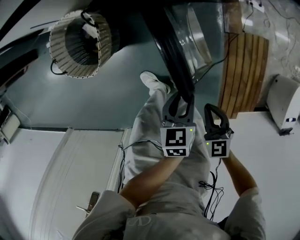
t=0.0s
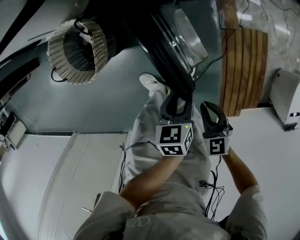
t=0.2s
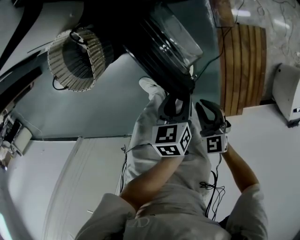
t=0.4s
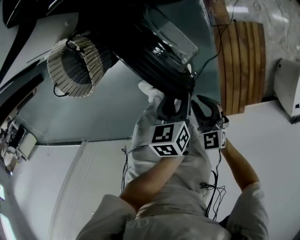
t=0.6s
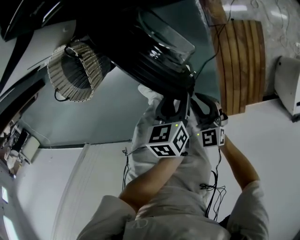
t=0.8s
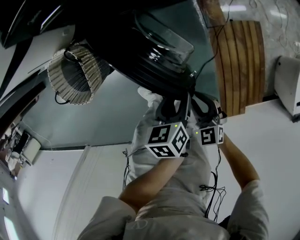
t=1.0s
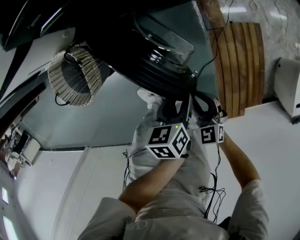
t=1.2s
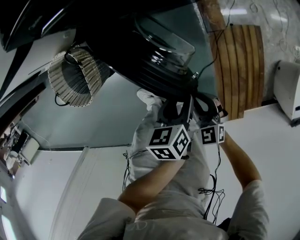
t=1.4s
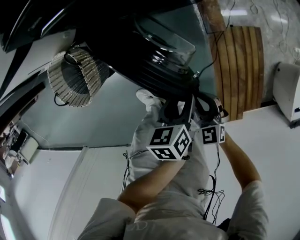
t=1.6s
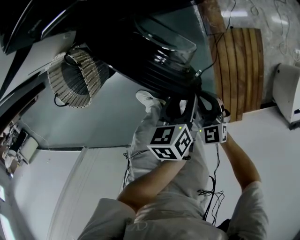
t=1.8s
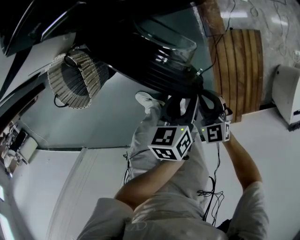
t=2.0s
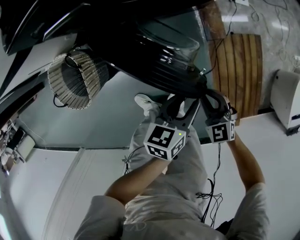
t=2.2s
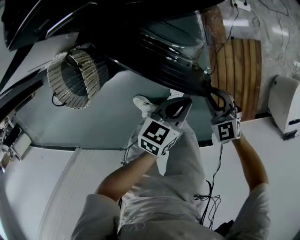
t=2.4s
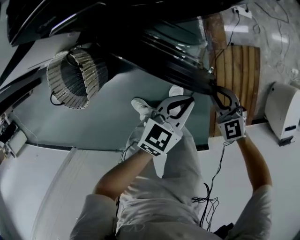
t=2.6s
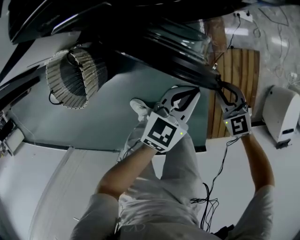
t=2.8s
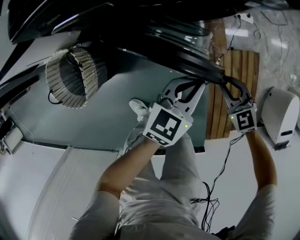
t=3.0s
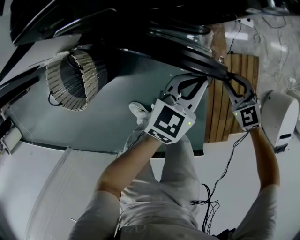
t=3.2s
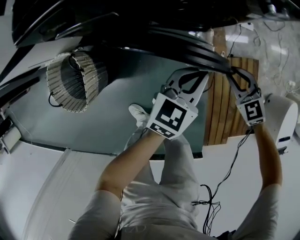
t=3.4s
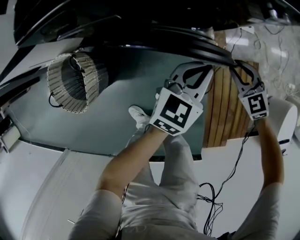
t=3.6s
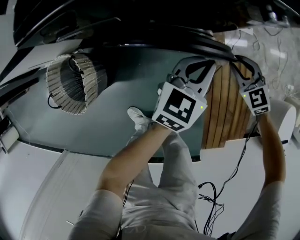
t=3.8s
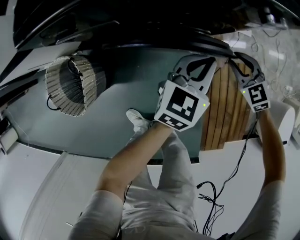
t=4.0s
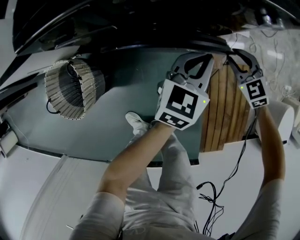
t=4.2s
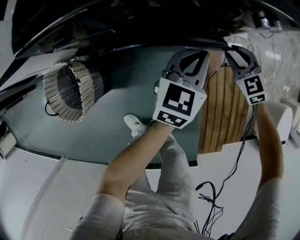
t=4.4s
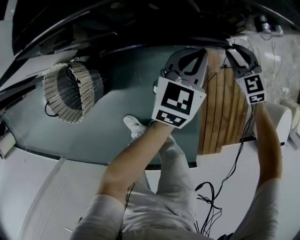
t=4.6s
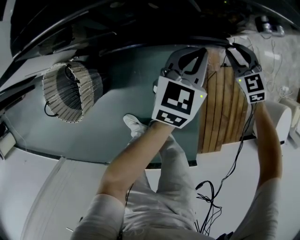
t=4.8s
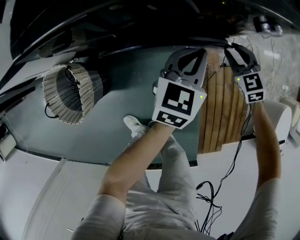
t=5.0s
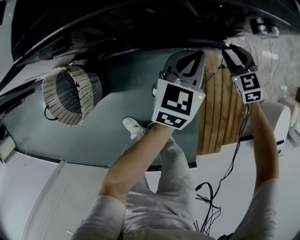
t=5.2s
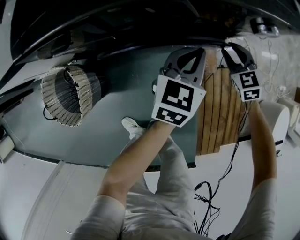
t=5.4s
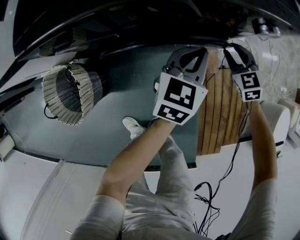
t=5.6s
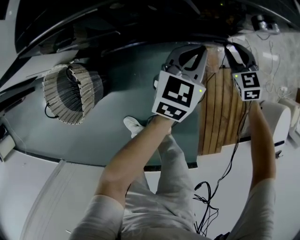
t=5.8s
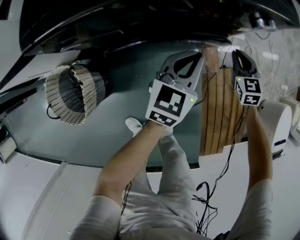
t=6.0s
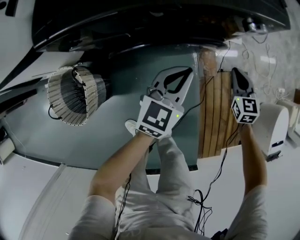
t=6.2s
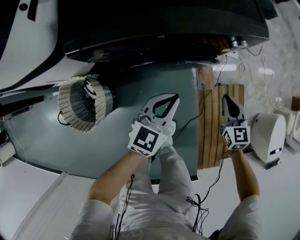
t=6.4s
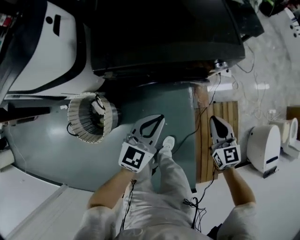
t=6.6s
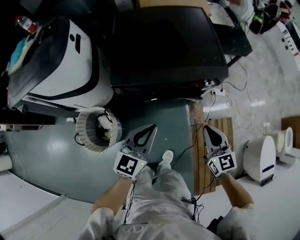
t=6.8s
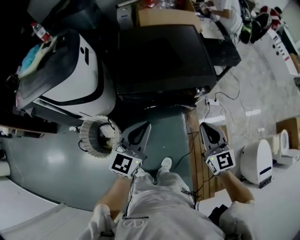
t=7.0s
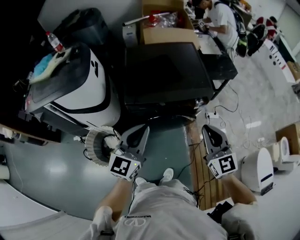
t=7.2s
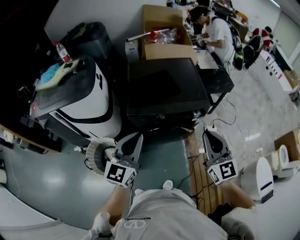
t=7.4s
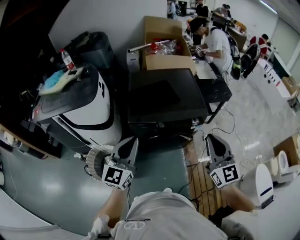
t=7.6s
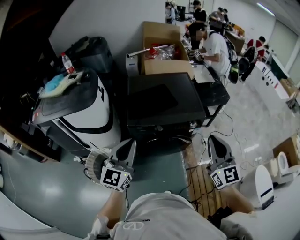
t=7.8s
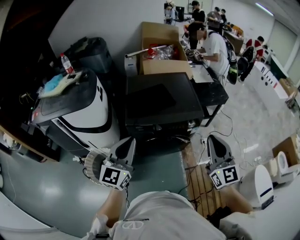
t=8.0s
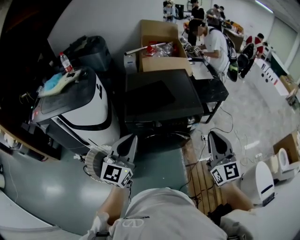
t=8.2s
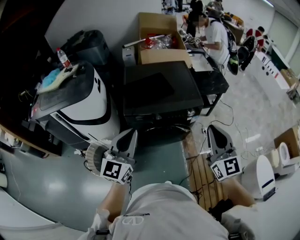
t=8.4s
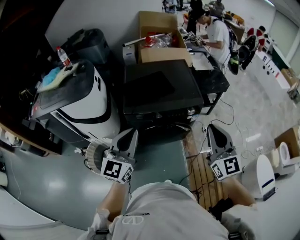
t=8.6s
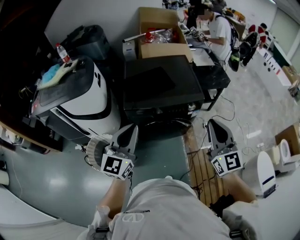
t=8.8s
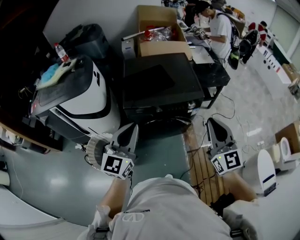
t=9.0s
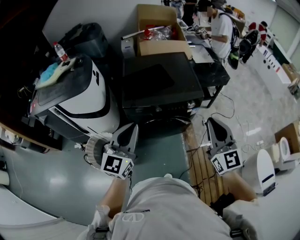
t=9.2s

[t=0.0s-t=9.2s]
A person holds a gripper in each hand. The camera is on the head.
t=0.0s to t=1.6s: The left gripper heads to the right and forward, covering some 15 cm. Meanwhile the right gripper shifts about 10 cm forward, to the right and downward.
t=1.6s to t=3.0s: The right gripper is displaced forward and to the right by some 20 cm; the left gripper shifts about 15 cm forward, twists about 40 degrees clockwise, seen from behind, and closes its fingers.
t=3.0s to t=4.6s: Both grippers travel together forward, approximately 20 cm.
t=4.6s to t=6.2s: The grippers both shift backward by some 5 cm. The right gripper swivels about 30 degrees, and closes up.
t=6.2s to t=7.6s: The right gripper moves upward, roughly 60 cm, and tilts its fingers roughly 40 degrees upward. The left gripper goes approximately 50 cm upward and to the left, and changes its angle by approximately 30 degrees.
t=7.6s to t=9.2s: The grippers move only a little.

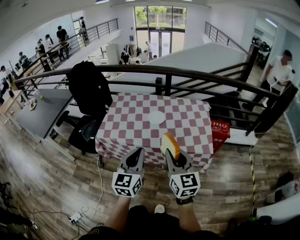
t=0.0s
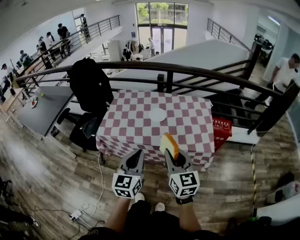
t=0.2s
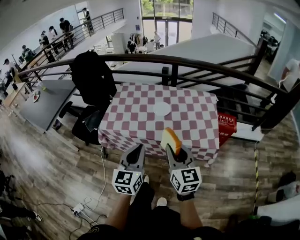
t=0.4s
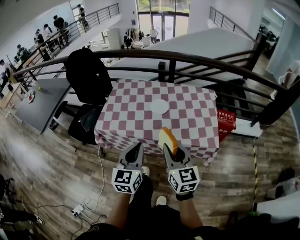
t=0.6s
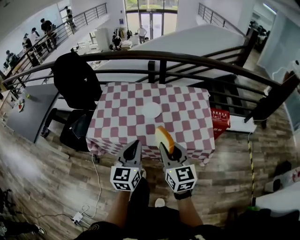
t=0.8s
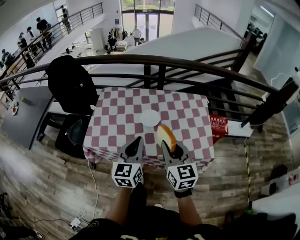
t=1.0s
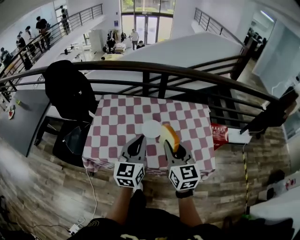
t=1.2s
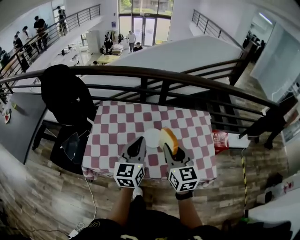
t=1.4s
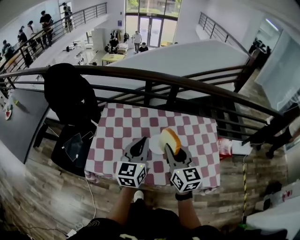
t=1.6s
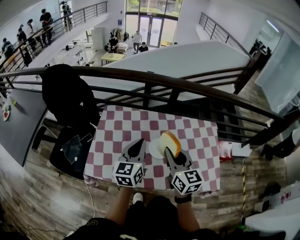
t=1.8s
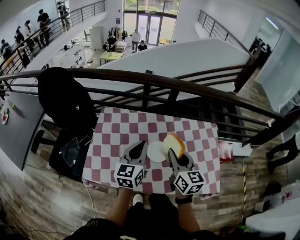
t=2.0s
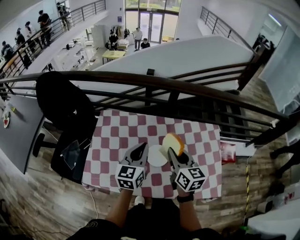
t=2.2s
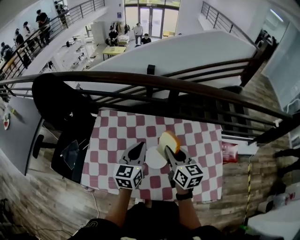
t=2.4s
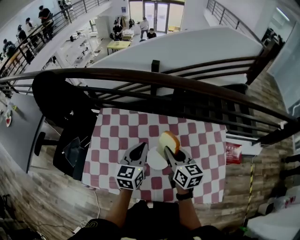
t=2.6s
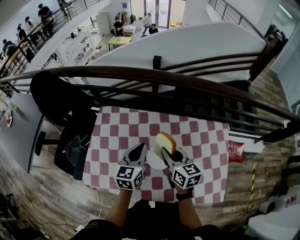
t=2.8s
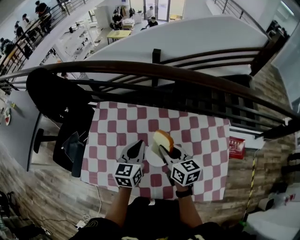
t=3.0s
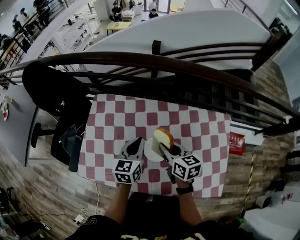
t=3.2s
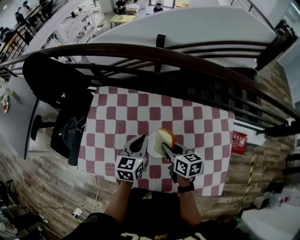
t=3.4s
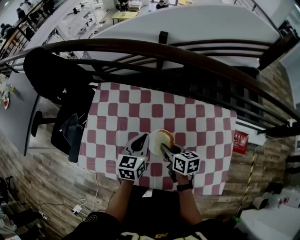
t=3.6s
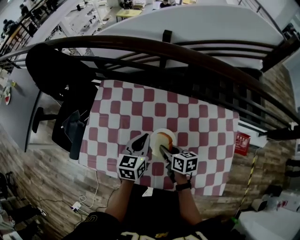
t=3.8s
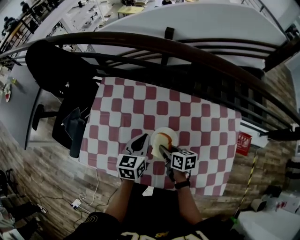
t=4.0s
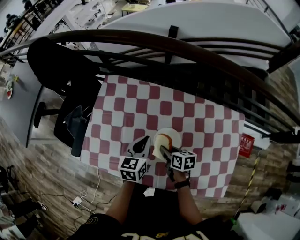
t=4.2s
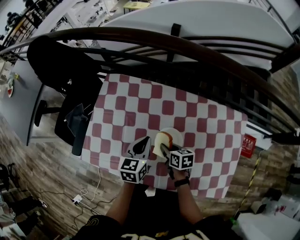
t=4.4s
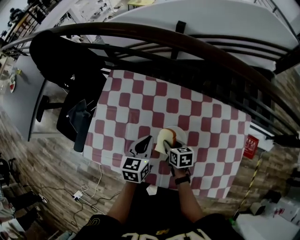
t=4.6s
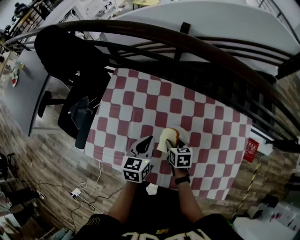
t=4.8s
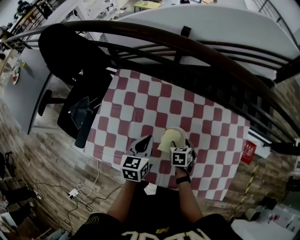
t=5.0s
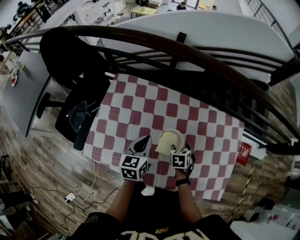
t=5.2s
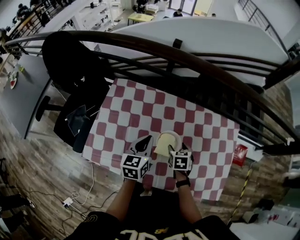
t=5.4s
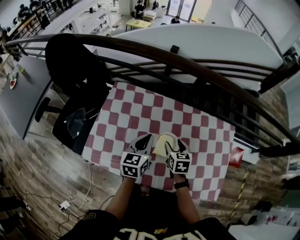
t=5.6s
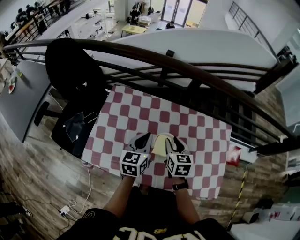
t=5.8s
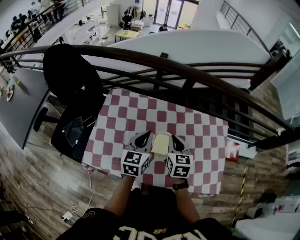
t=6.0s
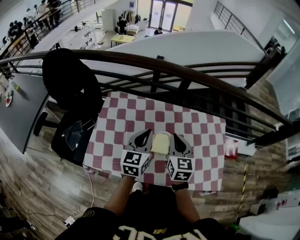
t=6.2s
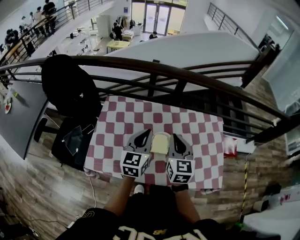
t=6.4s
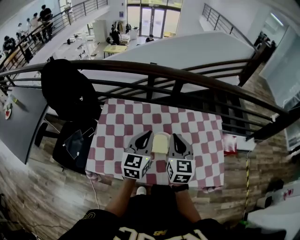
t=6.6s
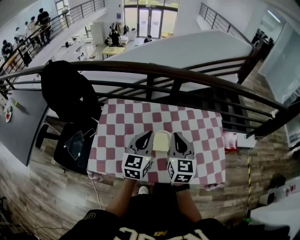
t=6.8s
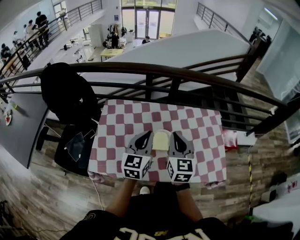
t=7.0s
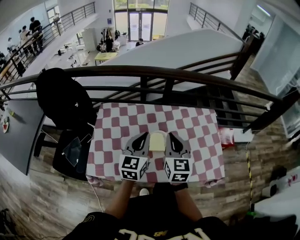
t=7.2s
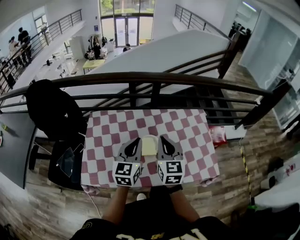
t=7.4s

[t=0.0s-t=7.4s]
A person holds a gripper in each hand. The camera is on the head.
t=0.0s to t=1.4s: The two grippers go about 30 cm forward.
t=1.4s to t=3.0s: The grippers both shift forward and downward by about 25 cm. The right gripper changes its angle by some 30 degrees.
t=3.0s to t=4.4s: The right gripper goes some 20 cm downward, and turns by about 30 degrees. Meanwhile the left gripper goes some 10 cm downward.
t=4.4s to t=6.0s: The left gripper shifts some 10 cm upward; the right gripper travels upward by about 20 cm, changes its angle by approximately 40 degrees, and opens, then closes again.
t=6.0s to t=7.4s: The left gripper goes roughly 10 cm backward and upward, while the right gripper heads upward and backward, covering roughly 10 cm.

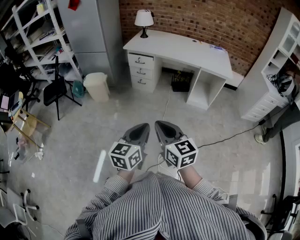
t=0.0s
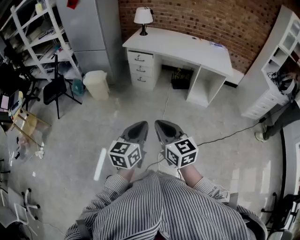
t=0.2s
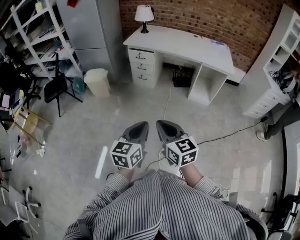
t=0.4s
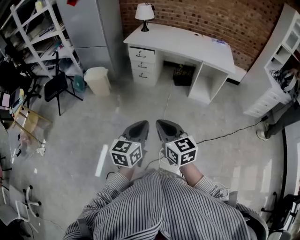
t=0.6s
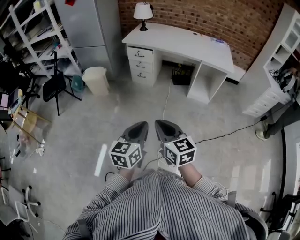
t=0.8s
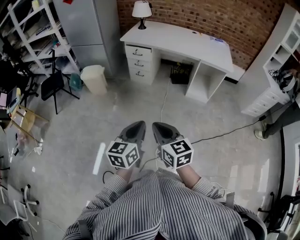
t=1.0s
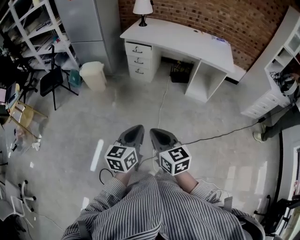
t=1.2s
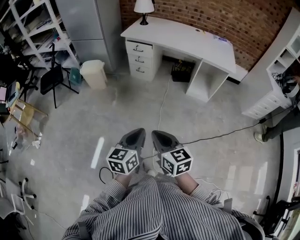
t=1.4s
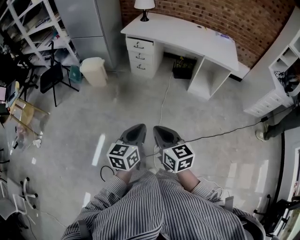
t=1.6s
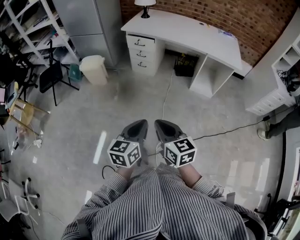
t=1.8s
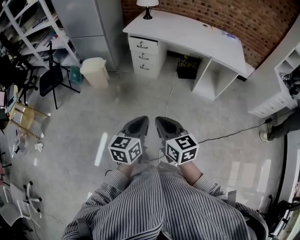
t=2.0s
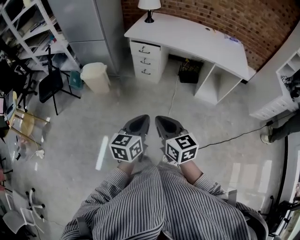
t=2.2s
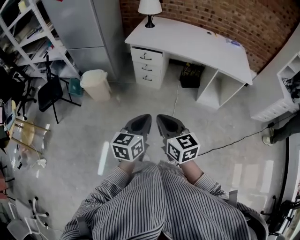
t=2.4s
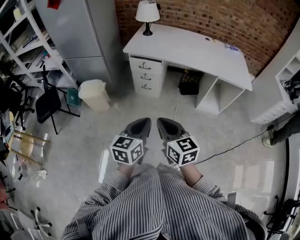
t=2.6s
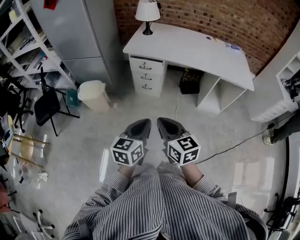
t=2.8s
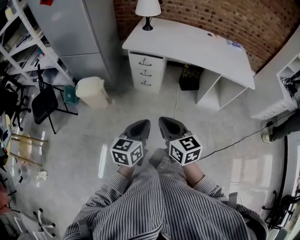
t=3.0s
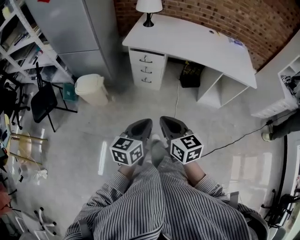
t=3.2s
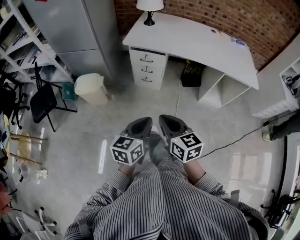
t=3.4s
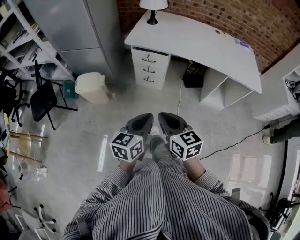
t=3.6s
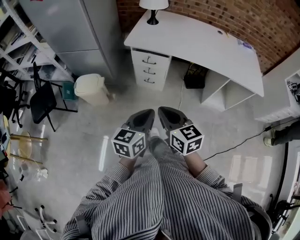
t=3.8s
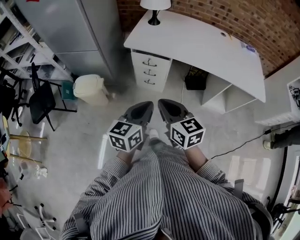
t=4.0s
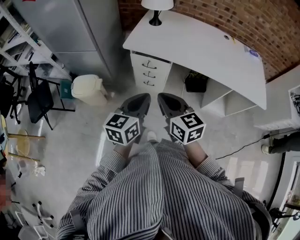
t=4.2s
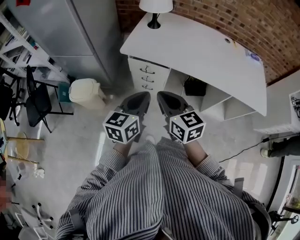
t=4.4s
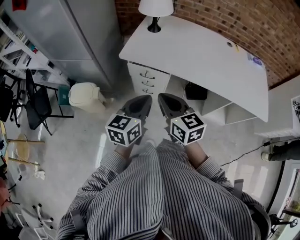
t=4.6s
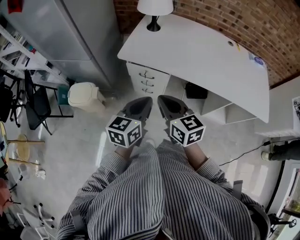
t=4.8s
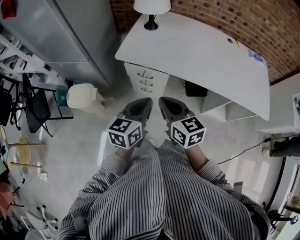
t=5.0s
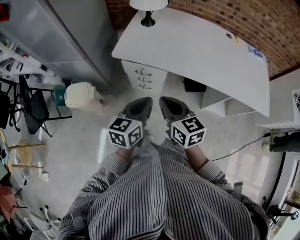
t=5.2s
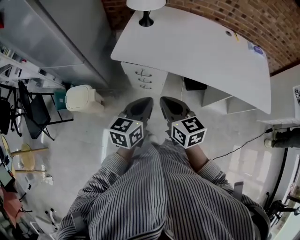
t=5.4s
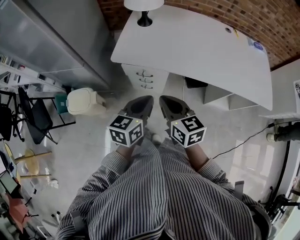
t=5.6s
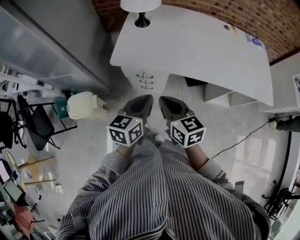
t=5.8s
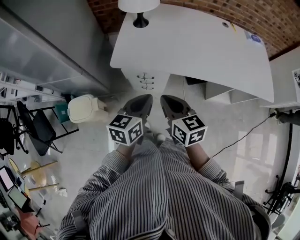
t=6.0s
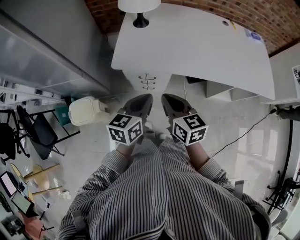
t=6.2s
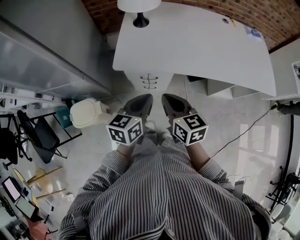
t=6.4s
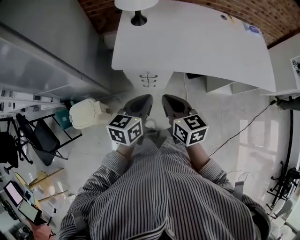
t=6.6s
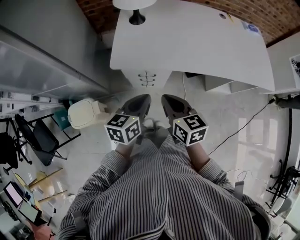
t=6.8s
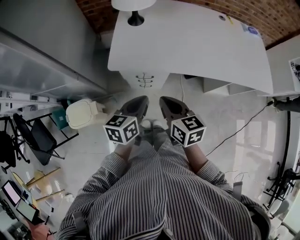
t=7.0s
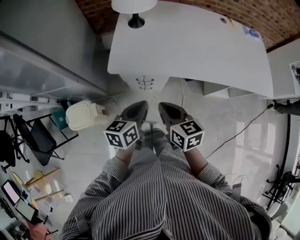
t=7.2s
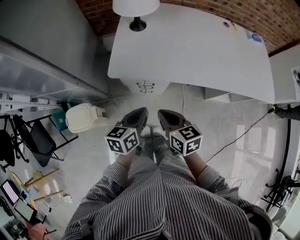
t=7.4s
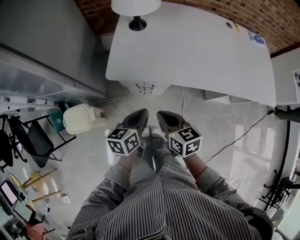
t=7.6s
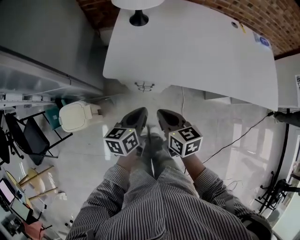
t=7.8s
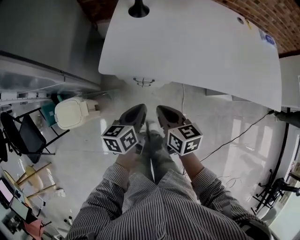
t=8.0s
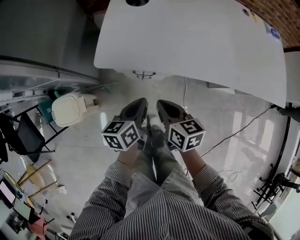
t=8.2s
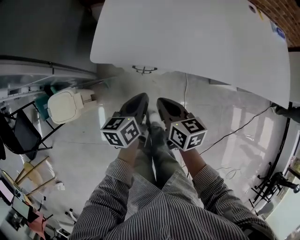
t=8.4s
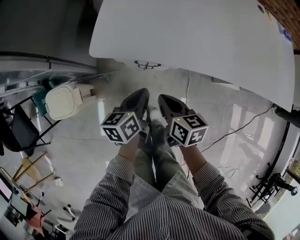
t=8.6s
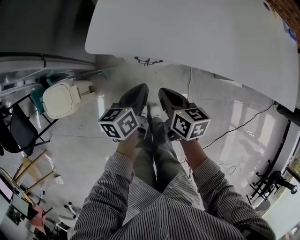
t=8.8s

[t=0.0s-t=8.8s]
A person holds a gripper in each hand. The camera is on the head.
t=0.0s to t=1.4s: Both grippers travel together downward, some 5 cm.
t=1.4s to t=3.0s: The two grippers travel together, forward, some 40 cm.
t=3.0s to t=4.4s: Both grippers move forward, about 35 cm.
t=4.4s to t=5.8s: Both grippers move forward, some 10 cm.
t=5.8s to t=7.4s: The left gripper shifts about 10 cm downward and to the left, while the right gripper is displaced downward by approximately 5 cm.
t=7.4s to t=8.8s: Both grippers travel together downward, roughly 20 cm.
